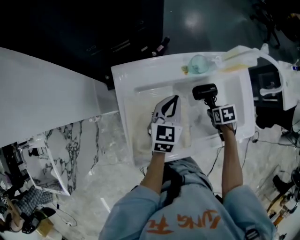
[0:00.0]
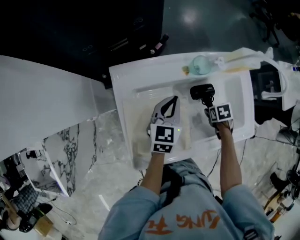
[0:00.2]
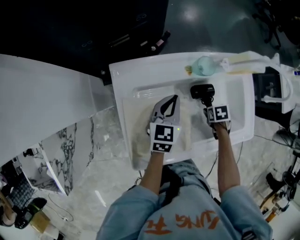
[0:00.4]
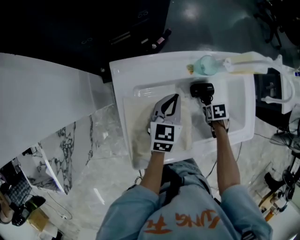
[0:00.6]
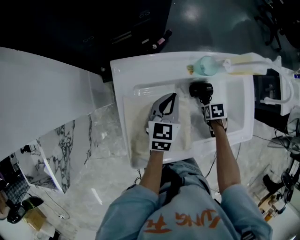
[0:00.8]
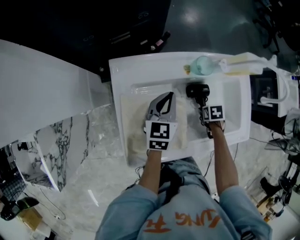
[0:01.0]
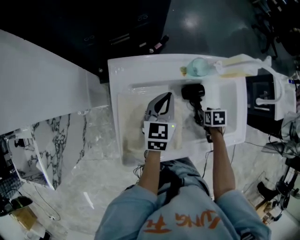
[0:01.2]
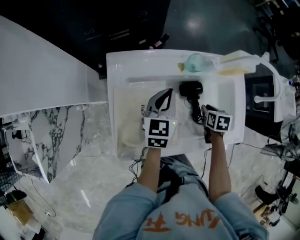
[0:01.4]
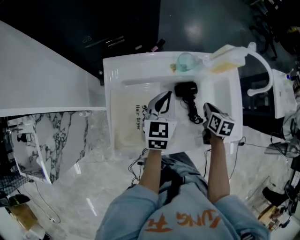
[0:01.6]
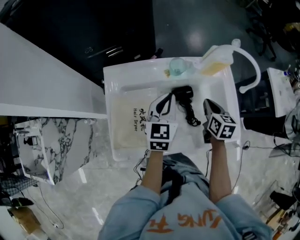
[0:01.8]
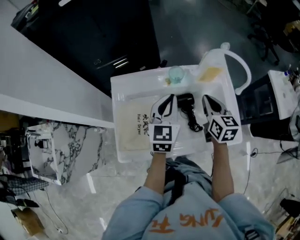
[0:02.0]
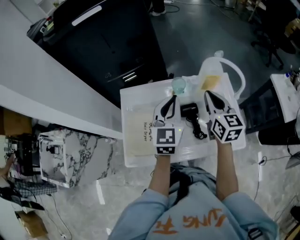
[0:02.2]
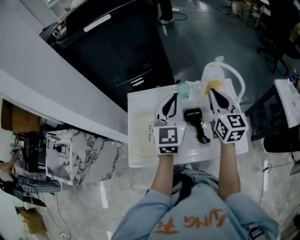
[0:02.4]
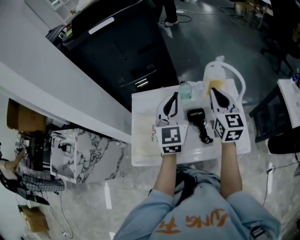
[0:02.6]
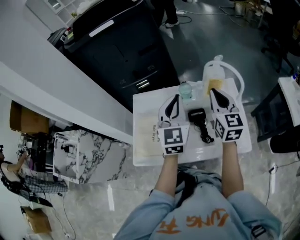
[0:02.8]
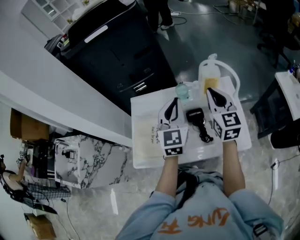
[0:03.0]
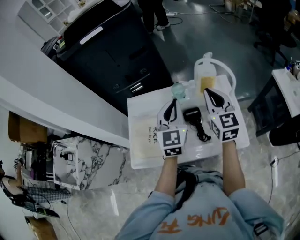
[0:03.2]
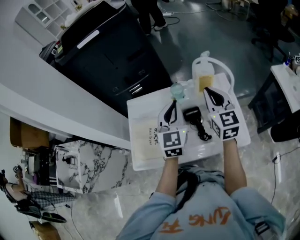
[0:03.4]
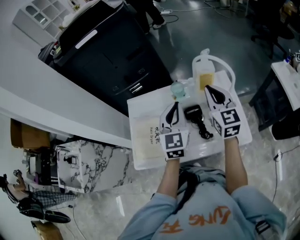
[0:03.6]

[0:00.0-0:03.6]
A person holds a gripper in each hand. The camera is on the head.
0:00.0 to 0:01.8: The left gripper shifts approximately 5 cm upward. Meanwhile the right gripper moves upward, about 15 cm, tilts its fingers some 40 degrees upward, and closes.
0:01.8 to 0:03.6: The left gripper travels upward and to the right by roughly 15 cm, and swivels some 20 degrees. Meanwhile the right gripper is displaced upward by roughly 20 cm, and points its fingers approximately 30 degrees further upward.

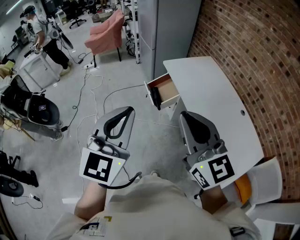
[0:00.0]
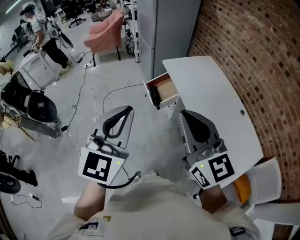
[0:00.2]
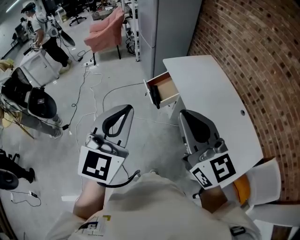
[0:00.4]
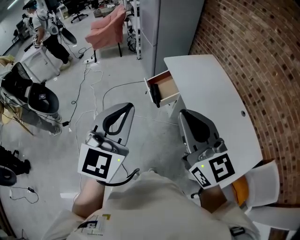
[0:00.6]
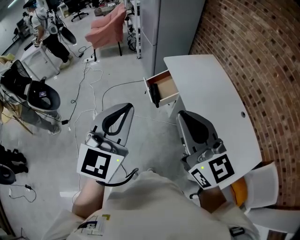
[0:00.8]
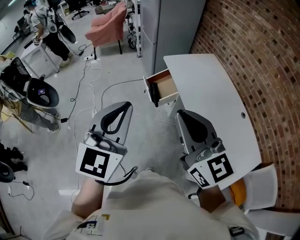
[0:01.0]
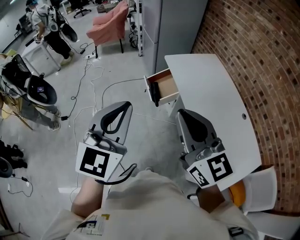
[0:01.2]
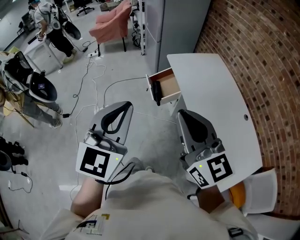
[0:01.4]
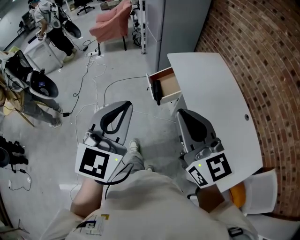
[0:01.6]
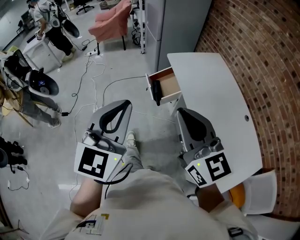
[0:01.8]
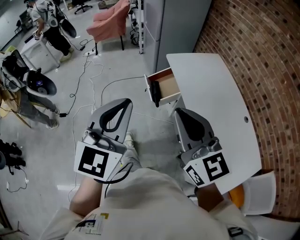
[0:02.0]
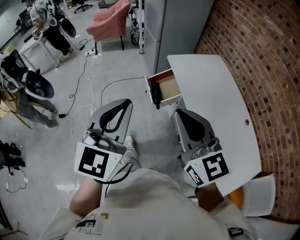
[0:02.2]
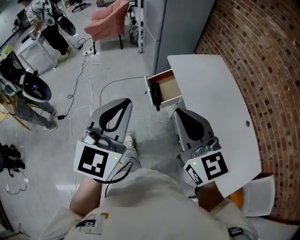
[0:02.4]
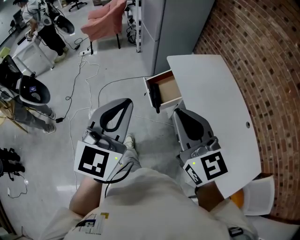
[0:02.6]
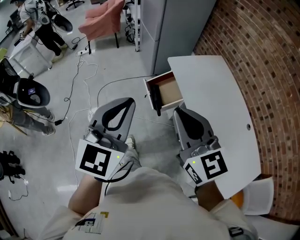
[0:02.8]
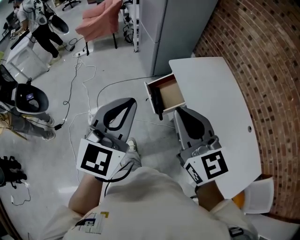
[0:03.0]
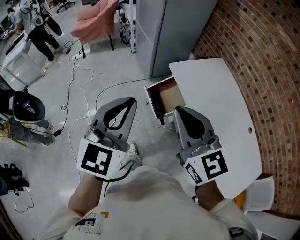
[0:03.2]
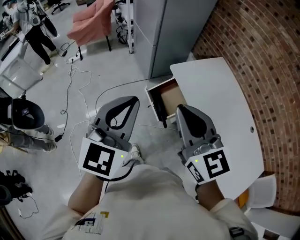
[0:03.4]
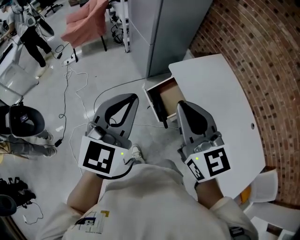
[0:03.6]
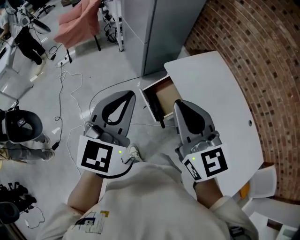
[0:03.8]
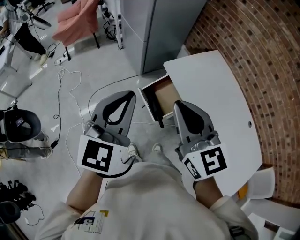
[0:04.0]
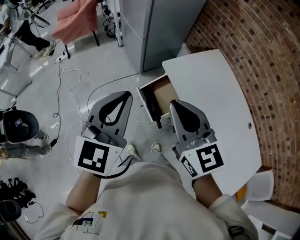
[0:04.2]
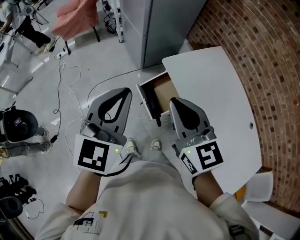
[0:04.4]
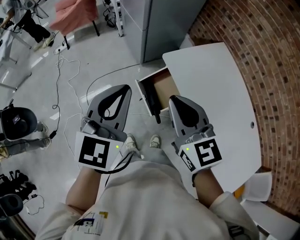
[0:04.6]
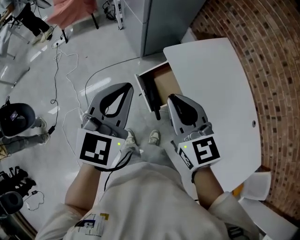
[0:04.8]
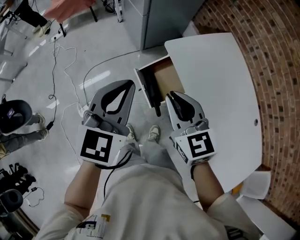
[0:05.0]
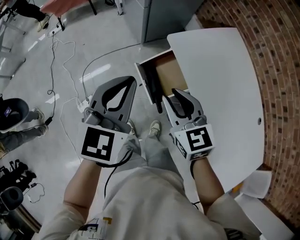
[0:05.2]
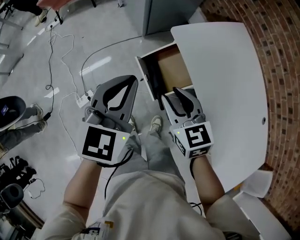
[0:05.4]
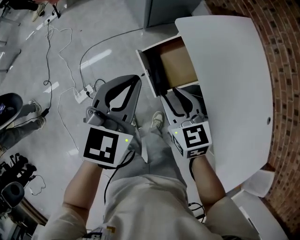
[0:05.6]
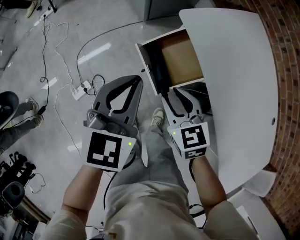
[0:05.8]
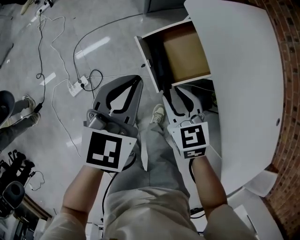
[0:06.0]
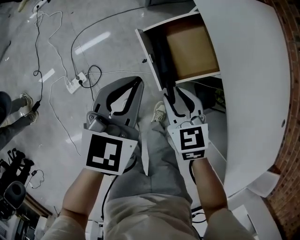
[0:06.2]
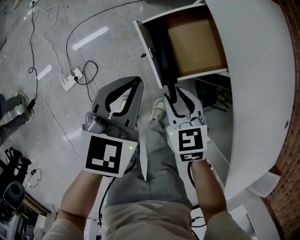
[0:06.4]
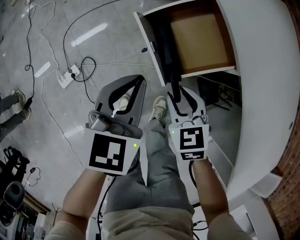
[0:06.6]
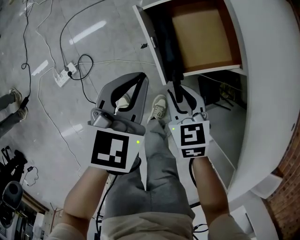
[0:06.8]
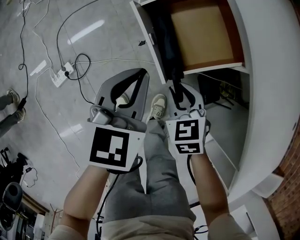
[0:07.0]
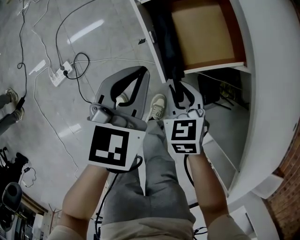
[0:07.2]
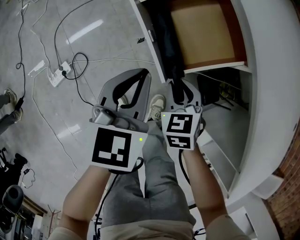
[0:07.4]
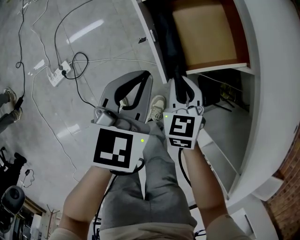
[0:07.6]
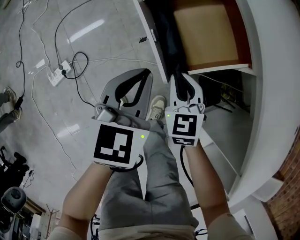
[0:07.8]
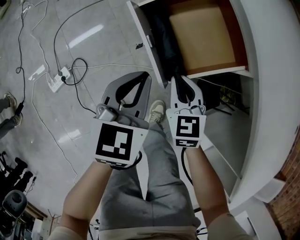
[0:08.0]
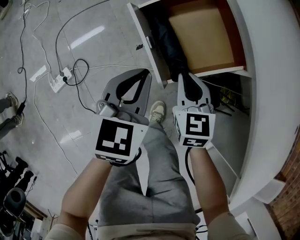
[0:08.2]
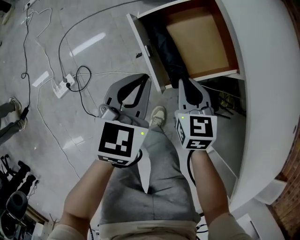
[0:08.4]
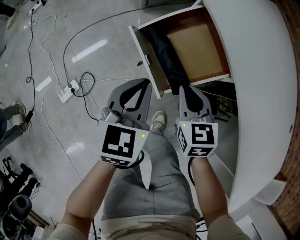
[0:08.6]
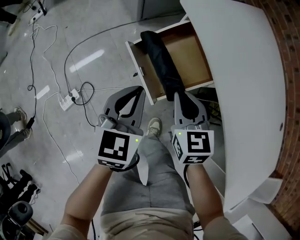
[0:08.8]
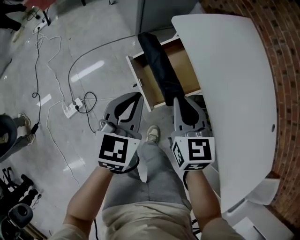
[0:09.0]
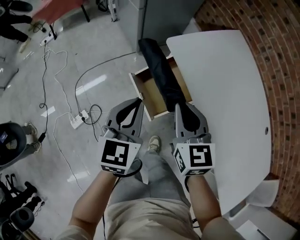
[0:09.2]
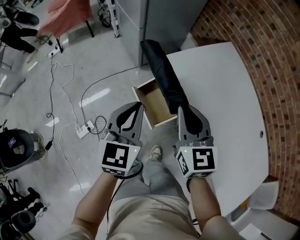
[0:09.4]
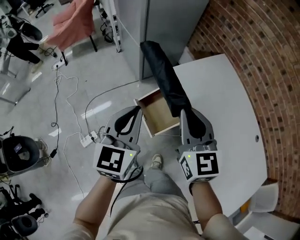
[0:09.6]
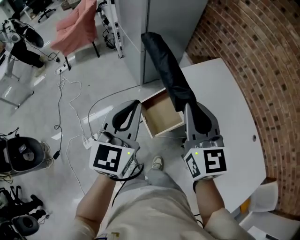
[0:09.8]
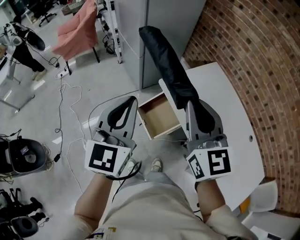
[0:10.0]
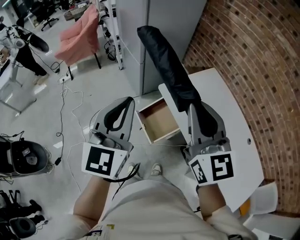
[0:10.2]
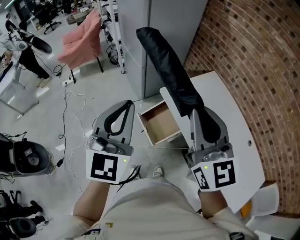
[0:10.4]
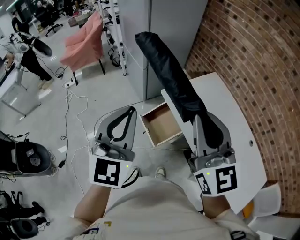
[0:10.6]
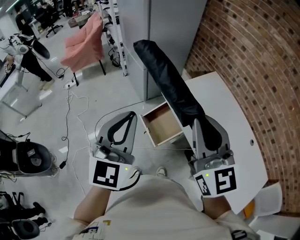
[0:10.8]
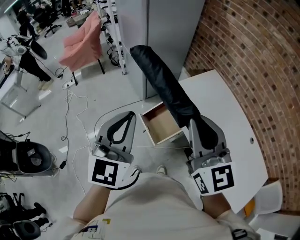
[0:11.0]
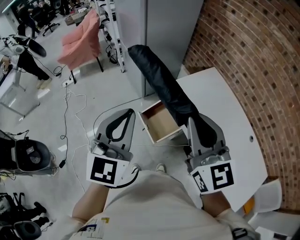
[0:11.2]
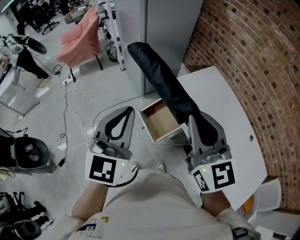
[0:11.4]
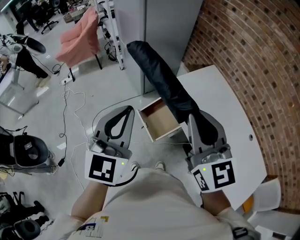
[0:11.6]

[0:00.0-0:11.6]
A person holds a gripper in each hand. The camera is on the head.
0:00.0 to 0:01.4: The left gripper moves roughly 5 cm; the right gripper ends up about 5 cm from where it was.
0:01.4 to 0:02.8: Both grippers travel together forward, about 15 cm.
0:02.8 to 0:04.4: Both grippers move forward, about 25 cm.
0:04.4 to 0:05.8: The grippers both shift downward by some 30 cm. The right gripper rotates about 30 degrees, and opens up.
0:05.8 to 0:07.2: The grippers both shift downward by about 25 cm.
0:07.2 to 0:08.8: The right gripper goes about 15 cm upward, and swivels roughly 30 degrees. The left gripper shifts about 10 cm upward.
0:08.8 to 0:10.2: The two grippers go roughly 50 cm upward. The right gripper tilts its fingers about 40 degrees upward; the left gripper points its fingers approximately 30 degrees further upward.
0:10.2 to 0:11.6: The grippers move only a little.

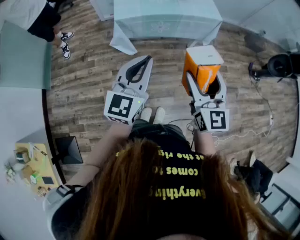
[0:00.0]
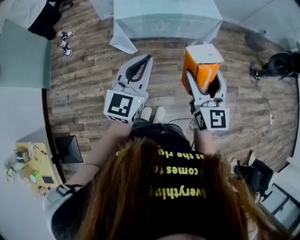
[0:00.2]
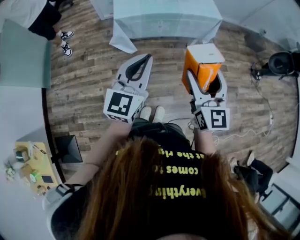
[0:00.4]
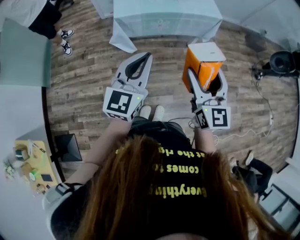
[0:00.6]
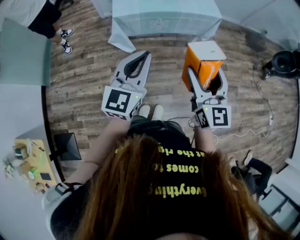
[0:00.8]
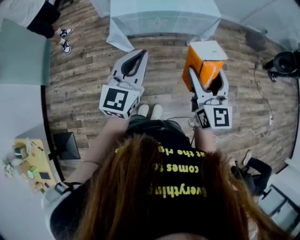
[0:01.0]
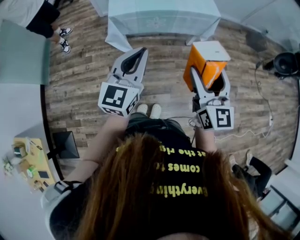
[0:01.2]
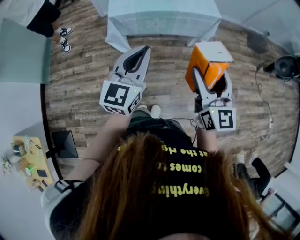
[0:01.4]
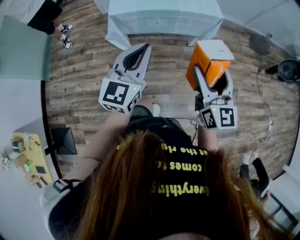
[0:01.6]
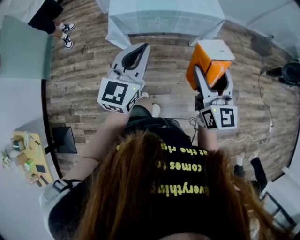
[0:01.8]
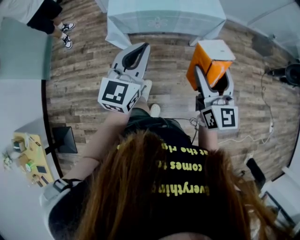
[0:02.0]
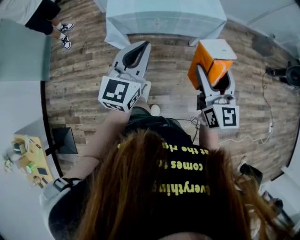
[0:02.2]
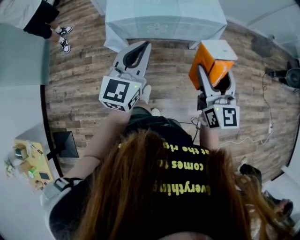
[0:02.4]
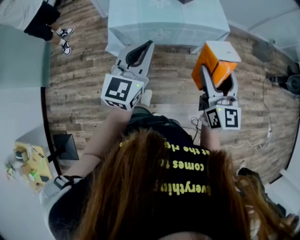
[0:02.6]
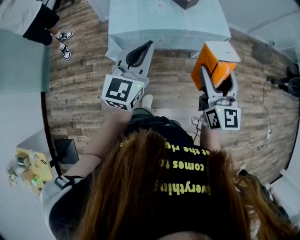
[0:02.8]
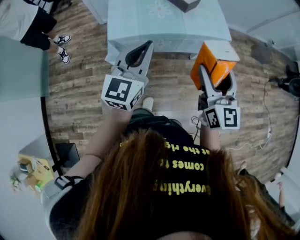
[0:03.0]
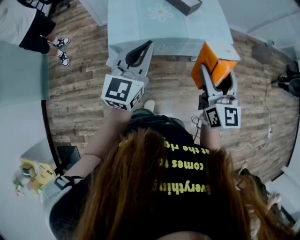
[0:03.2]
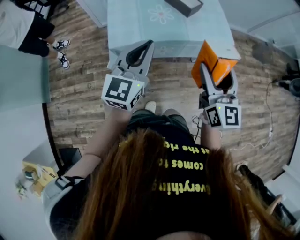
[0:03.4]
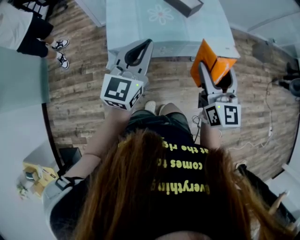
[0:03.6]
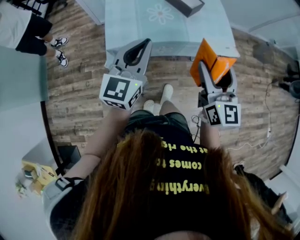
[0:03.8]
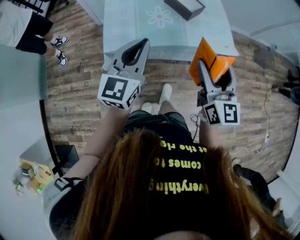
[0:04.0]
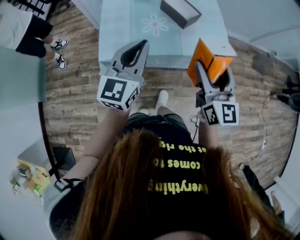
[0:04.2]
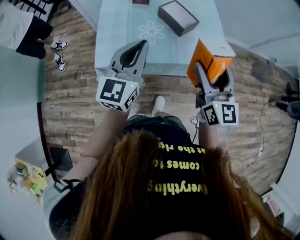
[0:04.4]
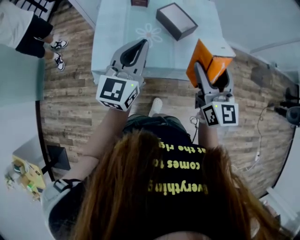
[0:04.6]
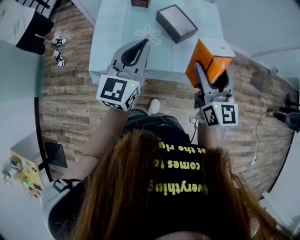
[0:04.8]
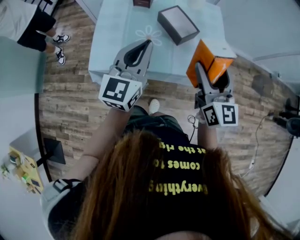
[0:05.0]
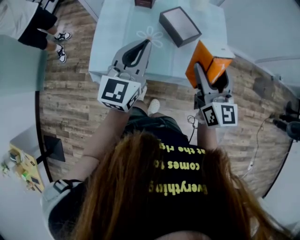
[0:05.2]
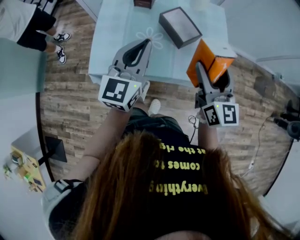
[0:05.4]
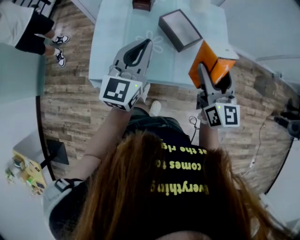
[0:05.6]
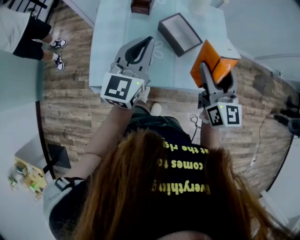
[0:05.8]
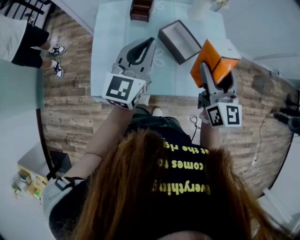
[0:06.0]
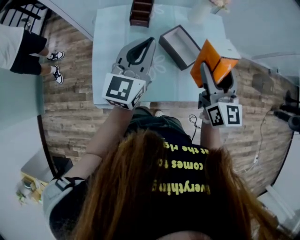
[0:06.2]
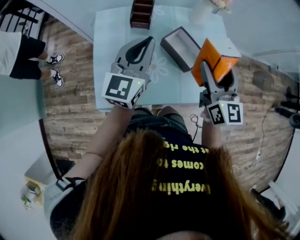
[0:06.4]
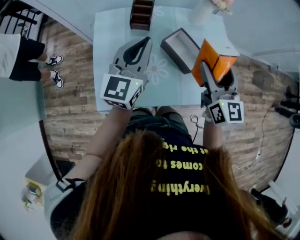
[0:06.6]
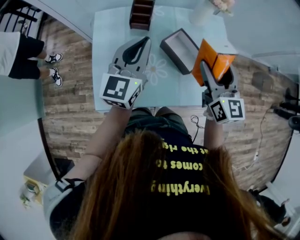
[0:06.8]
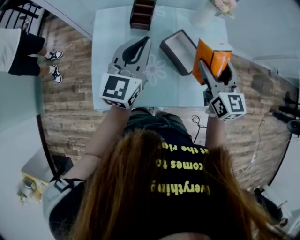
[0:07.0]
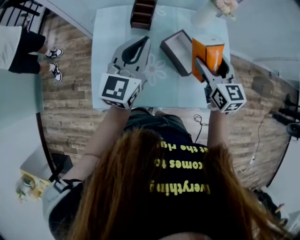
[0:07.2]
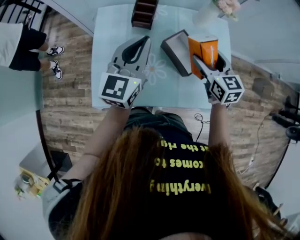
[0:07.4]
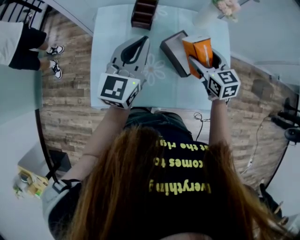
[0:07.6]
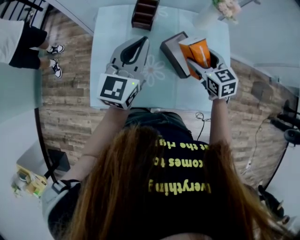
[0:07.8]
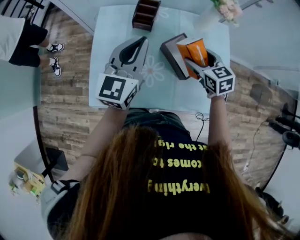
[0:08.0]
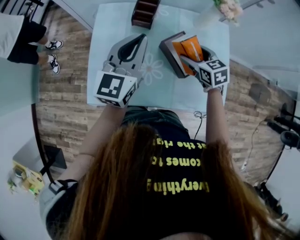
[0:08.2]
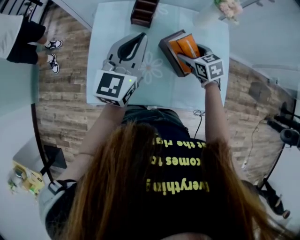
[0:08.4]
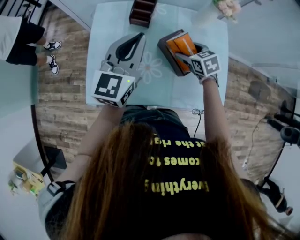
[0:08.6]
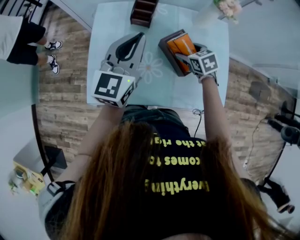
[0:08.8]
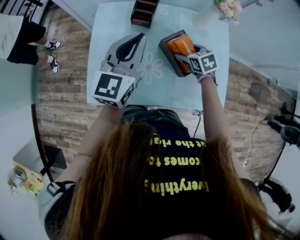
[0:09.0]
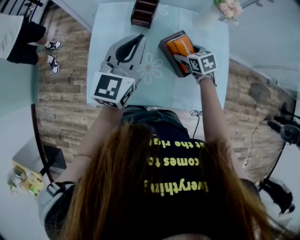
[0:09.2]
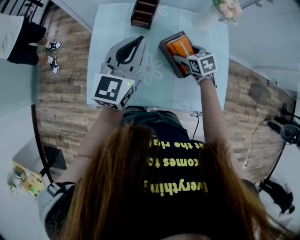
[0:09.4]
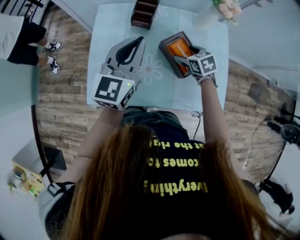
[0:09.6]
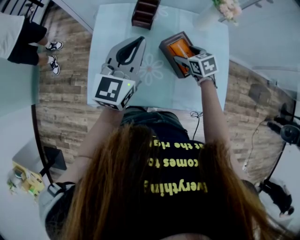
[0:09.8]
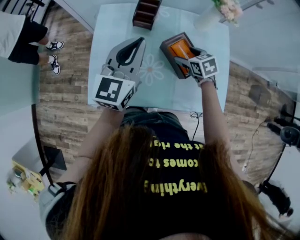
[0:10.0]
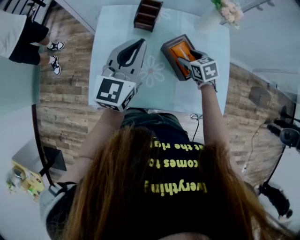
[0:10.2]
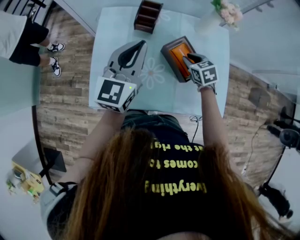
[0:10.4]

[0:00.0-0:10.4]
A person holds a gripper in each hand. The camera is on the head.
0:00.0 to 0:01.4: Both grippers move to the right, approximately 5 cm.
0:01.4 to 0:03.0: The grippers both shift forward by roughly 20 cm.
0:03.0 to 0:04.4: The two grippers go approximately 20 cm forward.
0:04.4 to 0:06.0: The two grippers go approximately 20 cm forward.
0:06.0 to 0:07.4: The left gripper moves forward, some 5 cm, while the right gripper is displaced forward and downward by roughly 15 cm, and rotates about 30 degrees.
0:07.4 to 0:09.0: The right gripper shifts about 15 cm downward, and rotates roughly 30 degrees.
0:09.0 to 0:10.4: The right gripper closes its fingers.
